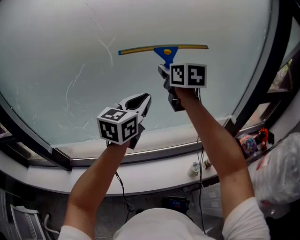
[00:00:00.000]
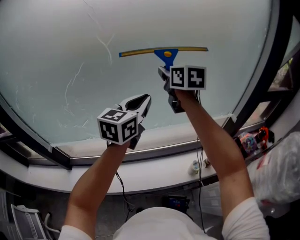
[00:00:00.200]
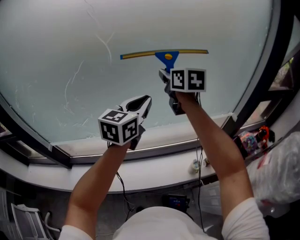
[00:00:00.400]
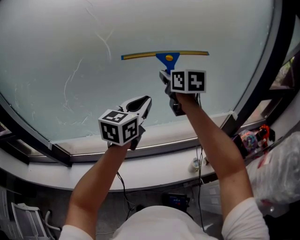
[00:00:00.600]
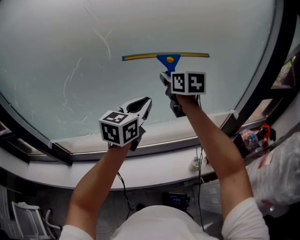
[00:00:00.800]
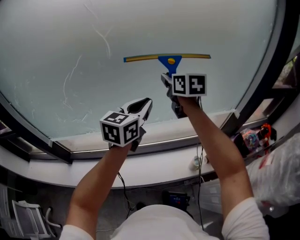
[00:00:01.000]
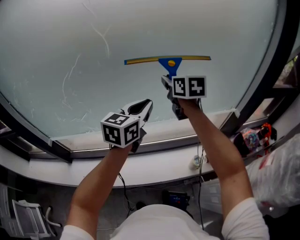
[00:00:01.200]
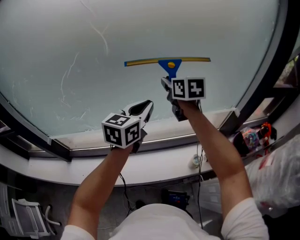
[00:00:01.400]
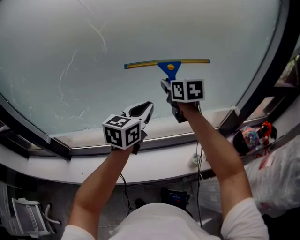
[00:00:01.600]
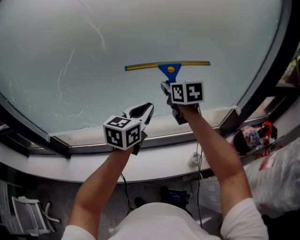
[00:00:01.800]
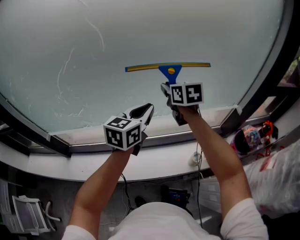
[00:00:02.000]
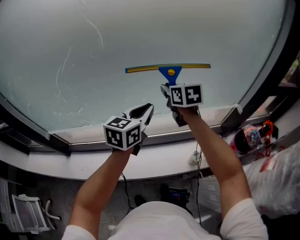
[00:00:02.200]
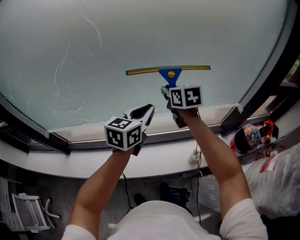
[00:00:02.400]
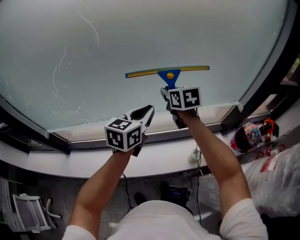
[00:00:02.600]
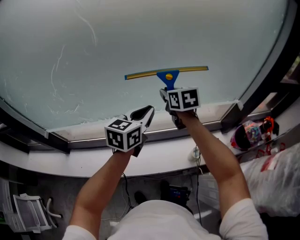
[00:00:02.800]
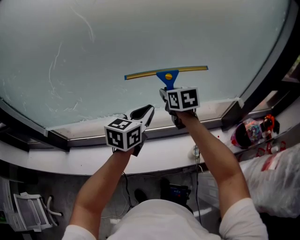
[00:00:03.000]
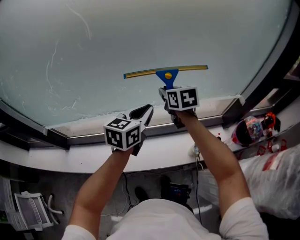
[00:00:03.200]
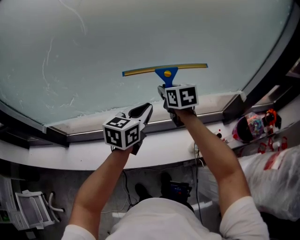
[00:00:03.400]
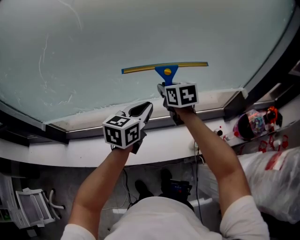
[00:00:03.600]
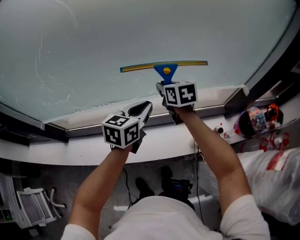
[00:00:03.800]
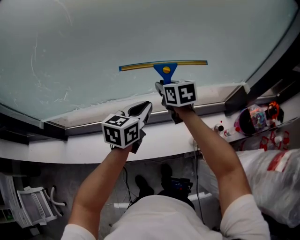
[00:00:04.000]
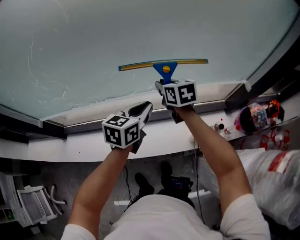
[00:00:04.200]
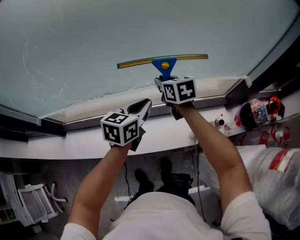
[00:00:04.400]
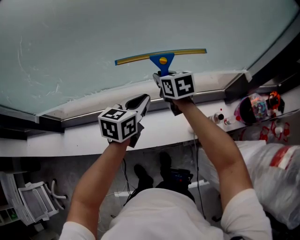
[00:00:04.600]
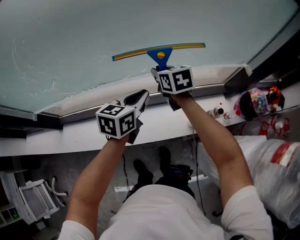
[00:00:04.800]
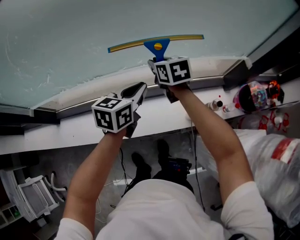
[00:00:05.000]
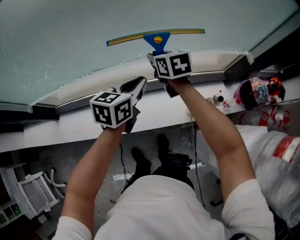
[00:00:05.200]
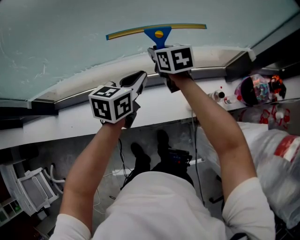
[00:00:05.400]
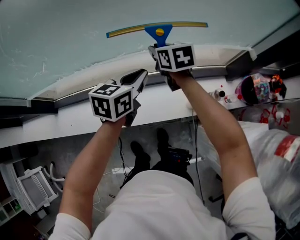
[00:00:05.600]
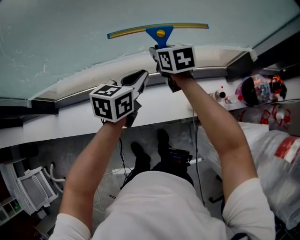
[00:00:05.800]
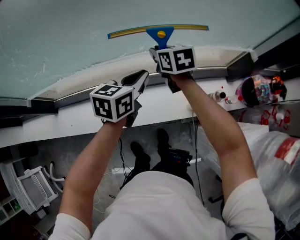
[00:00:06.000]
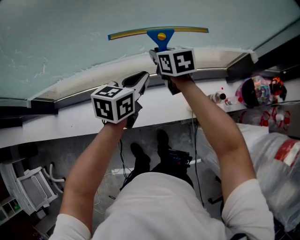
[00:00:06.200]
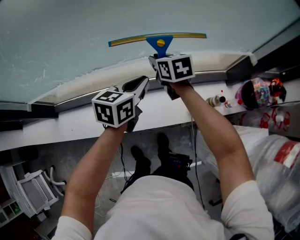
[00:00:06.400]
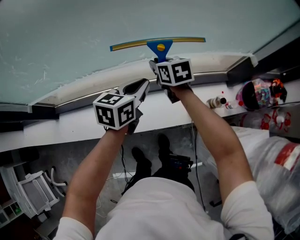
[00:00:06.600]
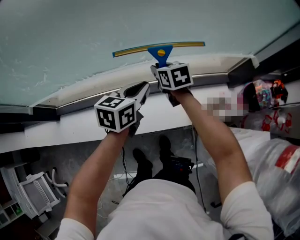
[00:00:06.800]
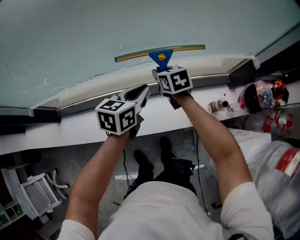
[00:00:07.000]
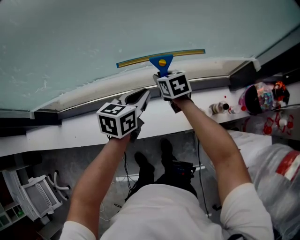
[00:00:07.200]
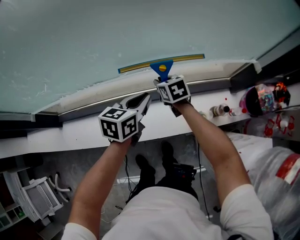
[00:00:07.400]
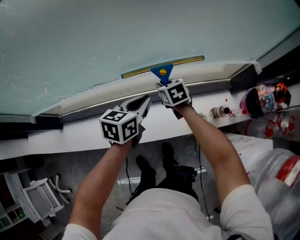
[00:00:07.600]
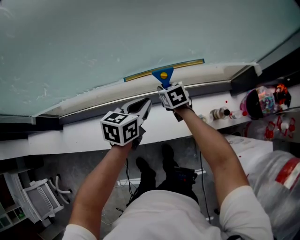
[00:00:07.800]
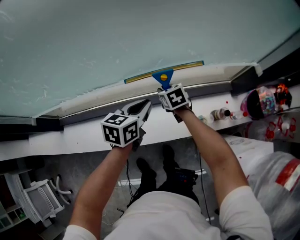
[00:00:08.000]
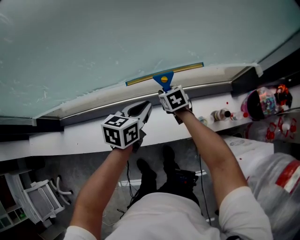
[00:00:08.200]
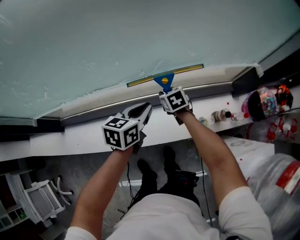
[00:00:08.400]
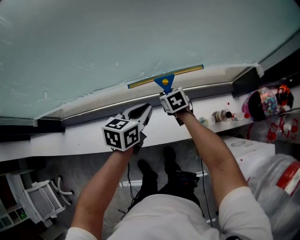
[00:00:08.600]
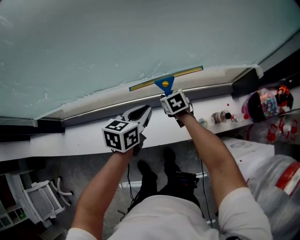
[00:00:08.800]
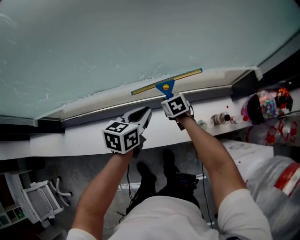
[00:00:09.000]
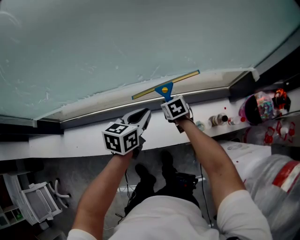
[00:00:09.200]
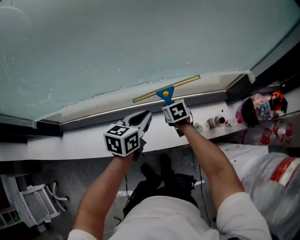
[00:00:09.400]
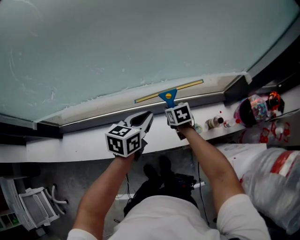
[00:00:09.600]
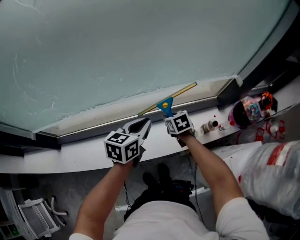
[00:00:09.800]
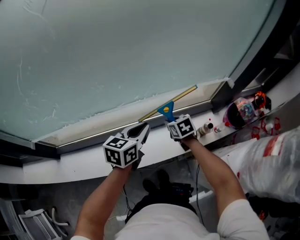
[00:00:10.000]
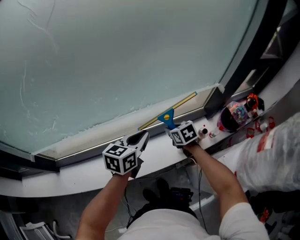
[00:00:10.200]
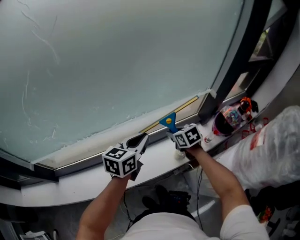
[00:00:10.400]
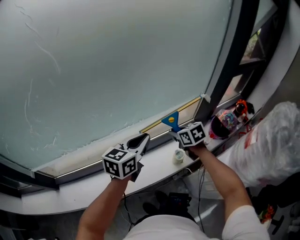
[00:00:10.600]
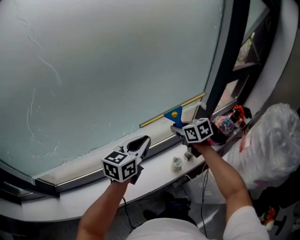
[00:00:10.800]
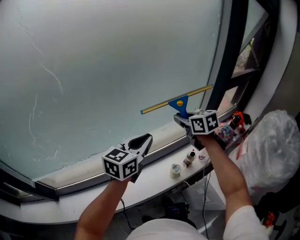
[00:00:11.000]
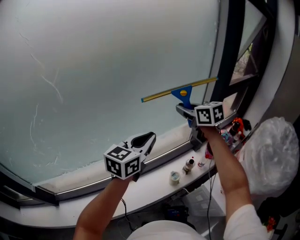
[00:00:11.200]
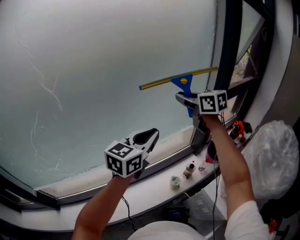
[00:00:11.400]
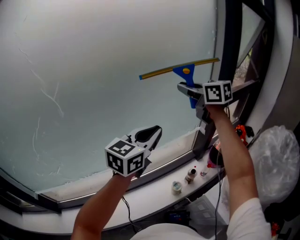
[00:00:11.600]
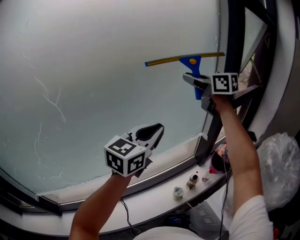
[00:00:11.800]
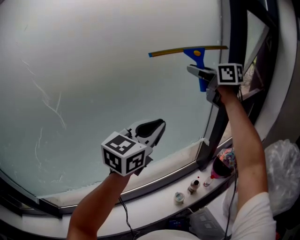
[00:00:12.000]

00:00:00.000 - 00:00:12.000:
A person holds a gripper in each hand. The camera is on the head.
00:00:00.000 - 00:00:01.600: The grippers both shift downward by some 10 cm.
00:00:01.600 - 00:00:03.000: The right gripper travels downward by approximately 10 cm; the left gripper heads downward, covering some 10 cm.
00:00:03.000 - 00:00:04.400: Both grippers move downward, about 10 cm.
00:00:04.400 - 00:00:06.000: The grippers make only small movements.
00:00:06.000 - 00:00:07.600: The left gripper ends up roughly 5 cm from where it was. Meanwhile the right gripper moves downward, approximately 15 cm.
00:00:07.600 - 00:00:09.000: The right gripper moves downward, approximately 5 cm.
00:00:09.000 - 00:00:10.400: The right gripper heads upward, to the right and backward, covering approximately 20 cm. Meanwhile the left gripper heads upward and backward, covering roughly 15 cm, and turns by approximately 20 degrees.
00:00:10.400 - 00:00:12.000: The left gripper shifts approximately 35 cm upward and to the right, and swivels about 30 degrees; the right gripper is displaced upward by about 60 cm, and tilts its fingers approximately 50 degrees upward.

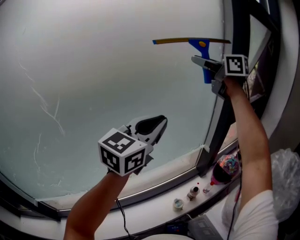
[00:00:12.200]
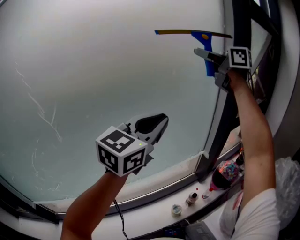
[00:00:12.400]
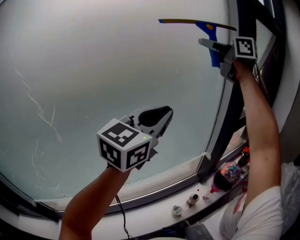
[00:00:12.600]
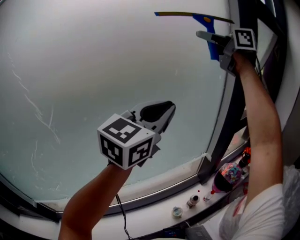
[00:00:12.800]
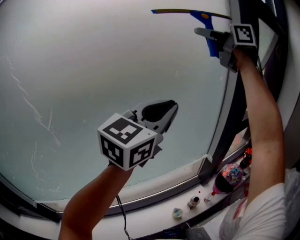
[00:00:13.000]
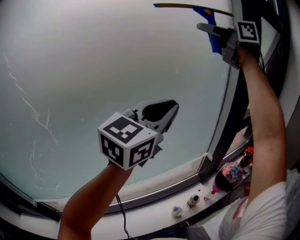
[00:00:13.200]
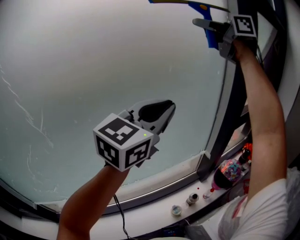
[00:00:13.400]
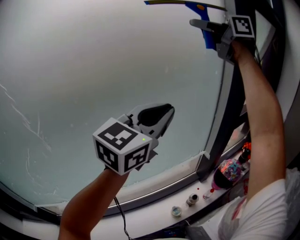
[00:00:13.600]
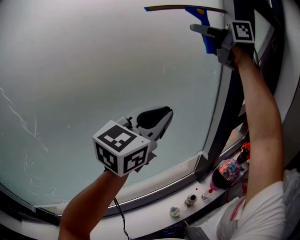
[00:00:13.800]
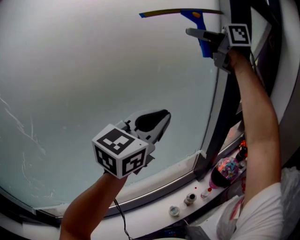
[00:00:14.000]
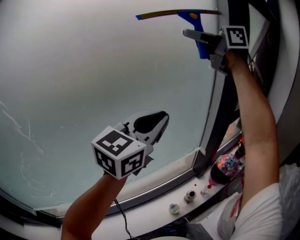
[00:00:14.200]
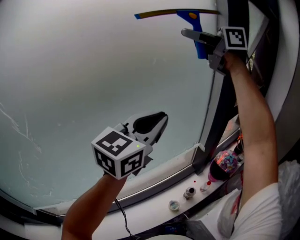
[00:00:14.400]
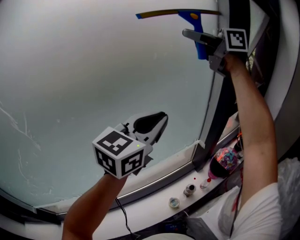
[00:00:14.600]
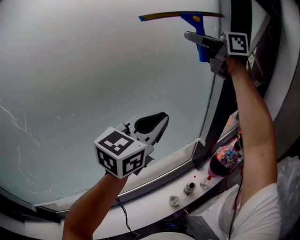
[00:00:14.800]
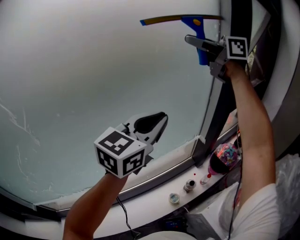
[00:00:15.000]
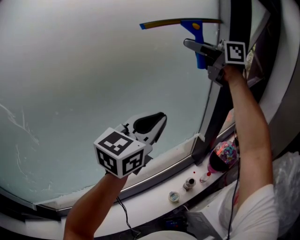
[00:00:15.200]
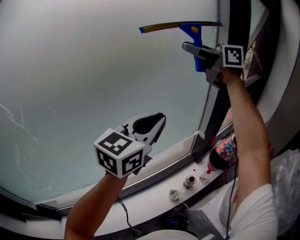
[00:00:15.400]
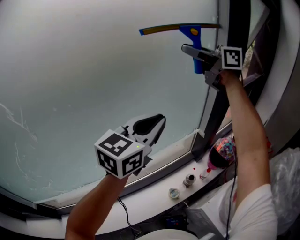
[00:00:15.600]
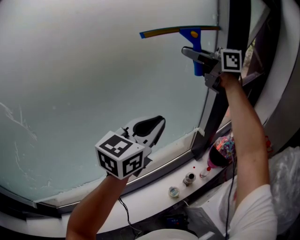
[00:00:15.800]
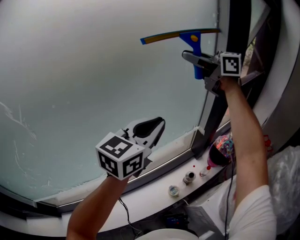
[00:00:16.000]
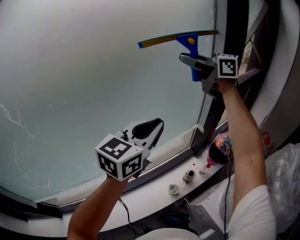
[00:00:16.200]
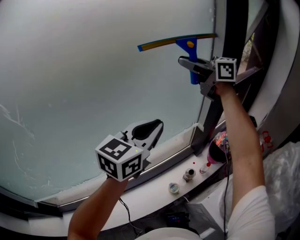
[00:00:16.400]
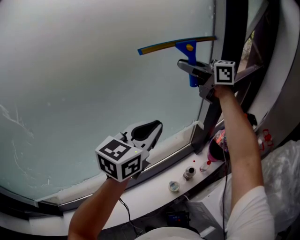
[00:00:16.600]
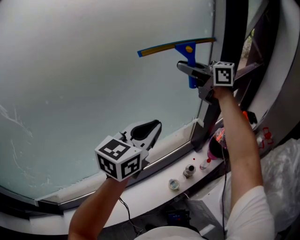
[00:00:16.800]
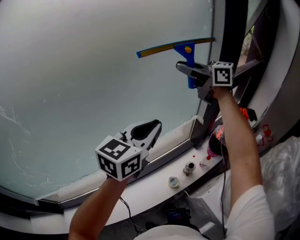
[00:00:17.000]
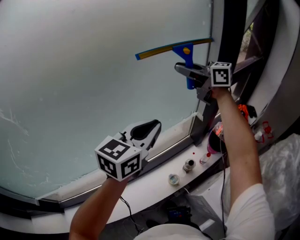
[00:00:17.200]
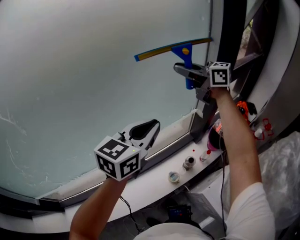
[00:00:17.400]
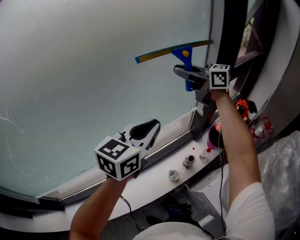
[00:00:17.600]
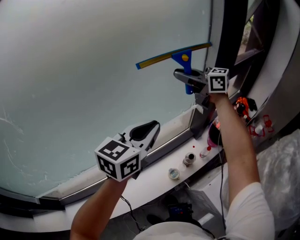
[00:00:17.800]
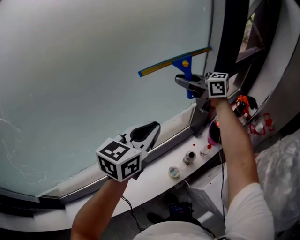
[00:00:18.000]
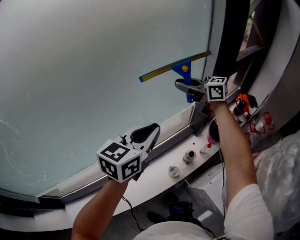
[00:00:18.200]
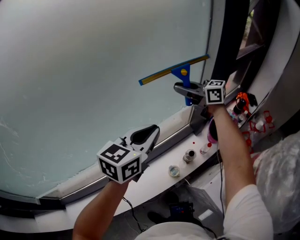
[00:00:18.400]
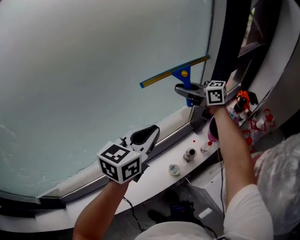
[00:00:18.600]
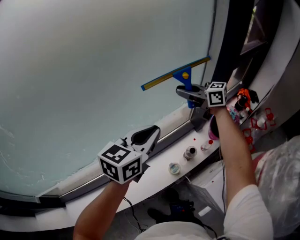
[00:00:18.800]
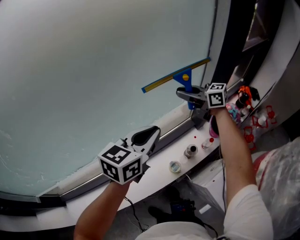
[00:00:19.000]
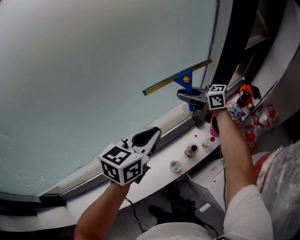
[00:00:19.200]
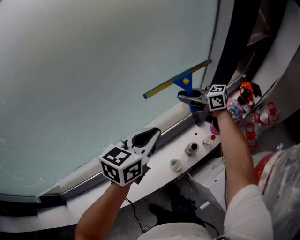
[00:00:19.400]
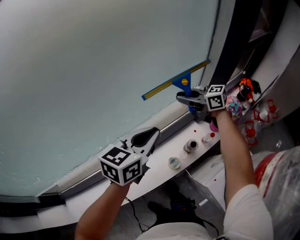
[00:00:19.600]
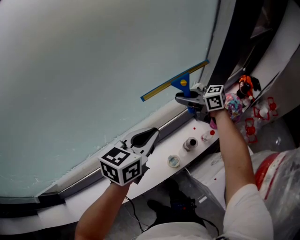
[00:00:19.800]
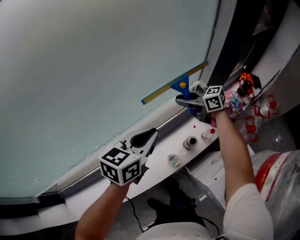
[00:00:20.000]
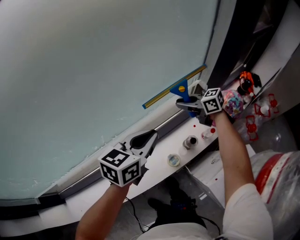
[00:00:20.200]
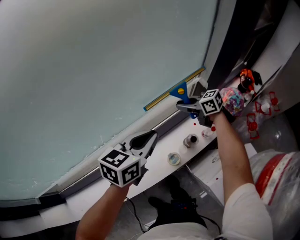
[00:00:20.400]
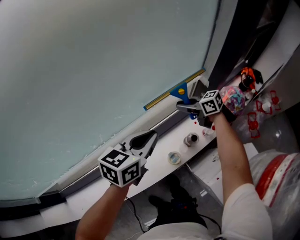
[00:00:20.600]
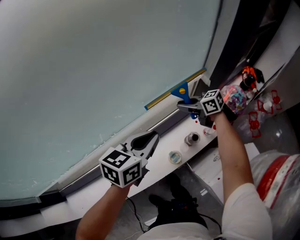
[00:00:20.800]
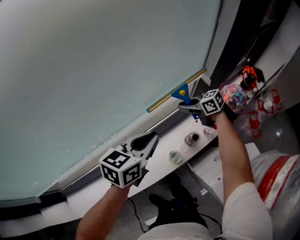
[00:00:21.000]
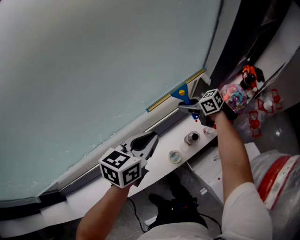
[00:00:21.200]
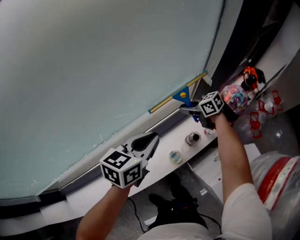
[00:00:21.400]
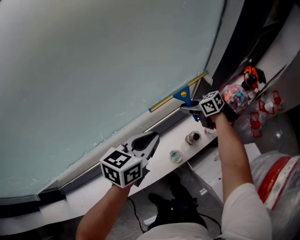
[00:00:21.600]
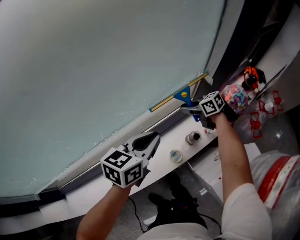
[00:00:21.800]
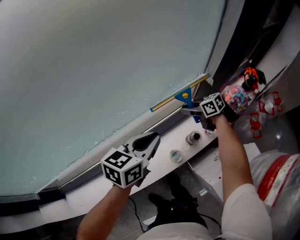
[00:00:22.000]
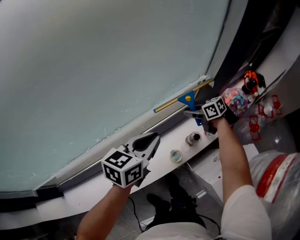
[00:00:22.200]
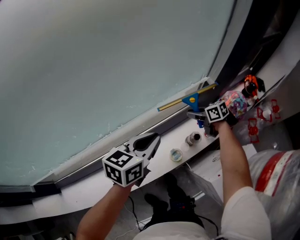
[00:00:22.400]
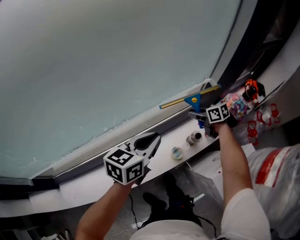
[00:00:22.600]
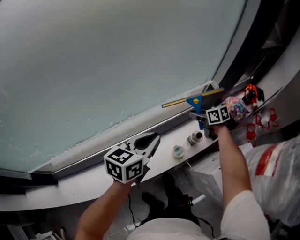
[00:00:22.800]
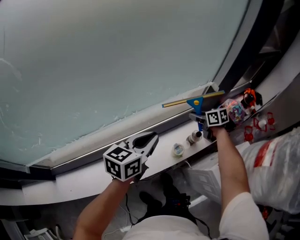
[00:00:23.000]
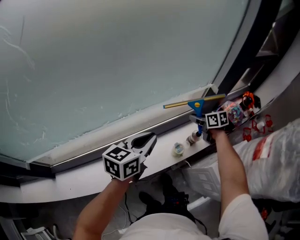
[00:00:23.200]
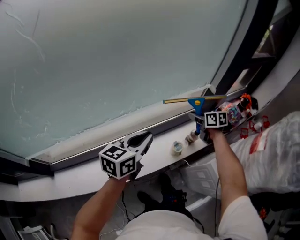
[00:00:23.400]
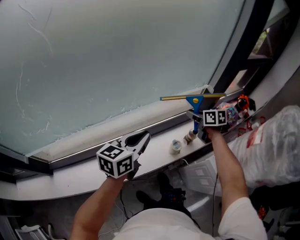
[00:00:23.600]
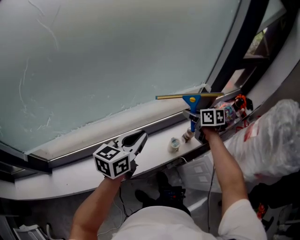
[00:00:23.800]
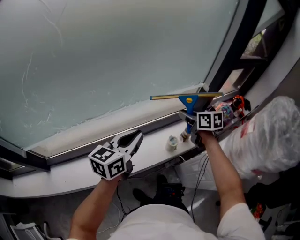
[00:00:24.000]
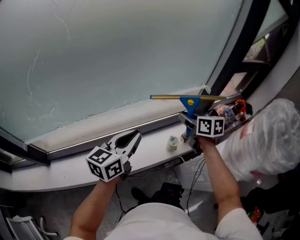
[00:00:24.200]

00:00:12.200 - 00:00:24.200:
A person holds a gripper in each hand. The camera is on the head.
00:00:12.200 - 00:00:13.800: The right gripper is displaced upward by about 10 cm; the left gripper travels to the right and forward by roughly 10 cm.
00:00:13.800 - 00:00:15.200: The left gripper shifts some 10 cm downward. Meanwhile the right gripper heads downward, covering approximately 15 cm.
00:00:15.200 - 00:00:16.600: The right gripper travels downward by approximately 15 cm. The left gripper is displaced downward by some 5 cm.
00:00:16.600 - 00:00:18.200: The left gripper goes roughly 10 cm downward. The right gripper moves downward, about 20 cm.
00:00:18.200 - 00:00:19.800: The right gripper heads downward, covering some 20 cm. The left gripper heads downward, covering approximately 10 cm.
00:00:19.800 - 00:00:21.200: The left gripper is displaced downward by about 5 cm. The right gripper moves downward, about 15 cm.
00:00:21.200 - 00:00:22.600: The right gripper moves some 5 cm. The left gripper heads to the left, covering some 5 cm.
00:00:22.600 - 00:00:24.200: The right gripper goes roughly 30 cm upward, backward and to the left; the left gripper travels backward, to the left and upward by approximately 25 cm.
